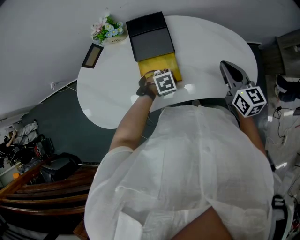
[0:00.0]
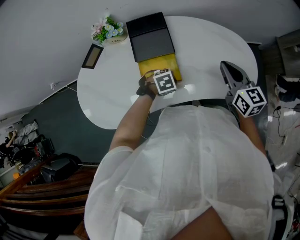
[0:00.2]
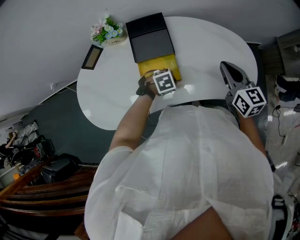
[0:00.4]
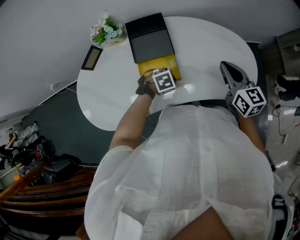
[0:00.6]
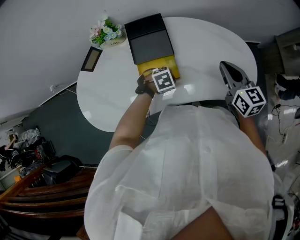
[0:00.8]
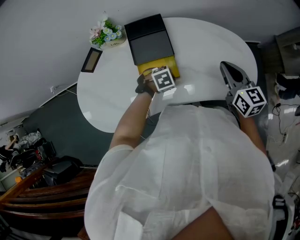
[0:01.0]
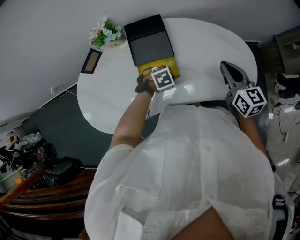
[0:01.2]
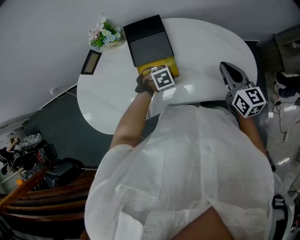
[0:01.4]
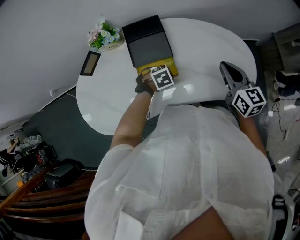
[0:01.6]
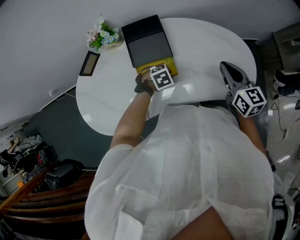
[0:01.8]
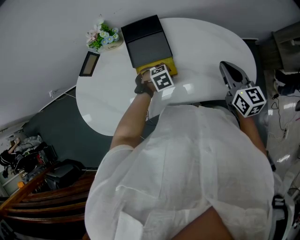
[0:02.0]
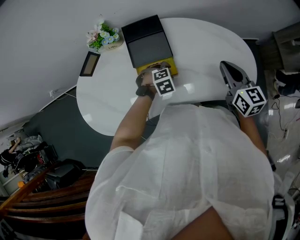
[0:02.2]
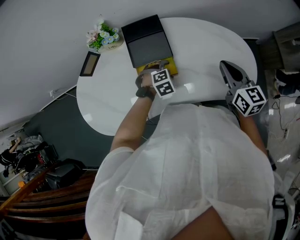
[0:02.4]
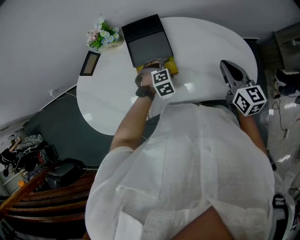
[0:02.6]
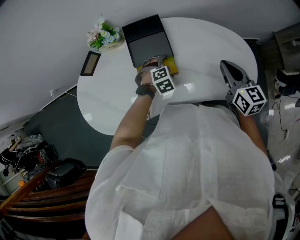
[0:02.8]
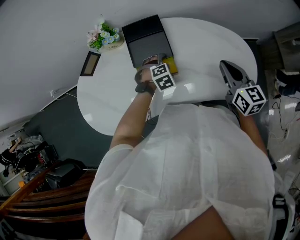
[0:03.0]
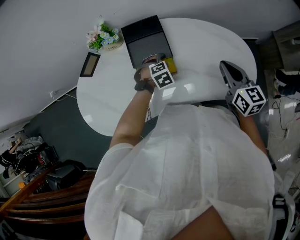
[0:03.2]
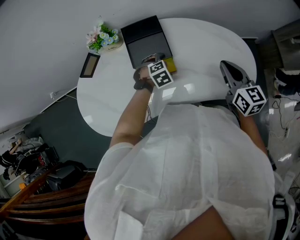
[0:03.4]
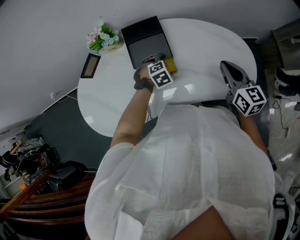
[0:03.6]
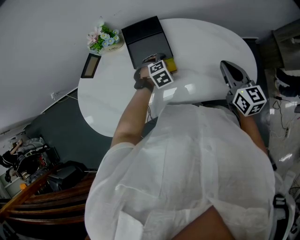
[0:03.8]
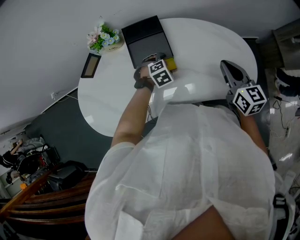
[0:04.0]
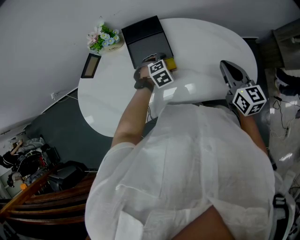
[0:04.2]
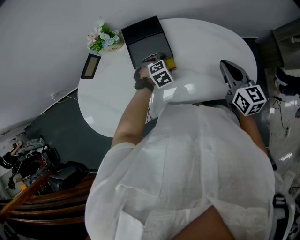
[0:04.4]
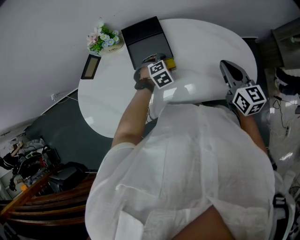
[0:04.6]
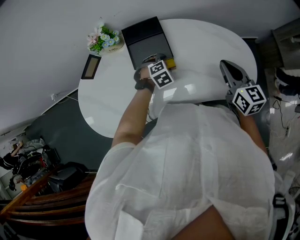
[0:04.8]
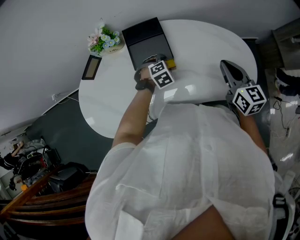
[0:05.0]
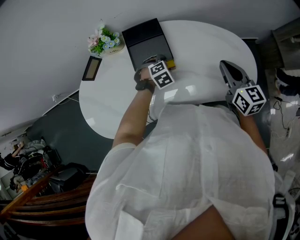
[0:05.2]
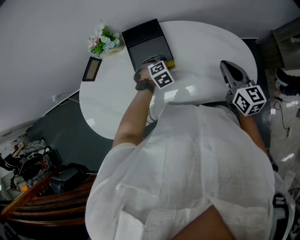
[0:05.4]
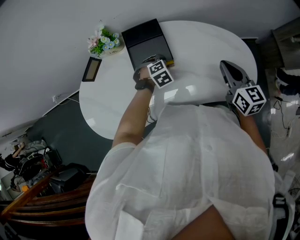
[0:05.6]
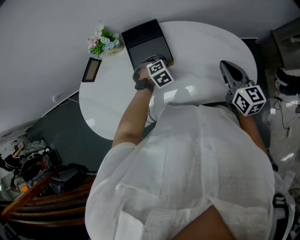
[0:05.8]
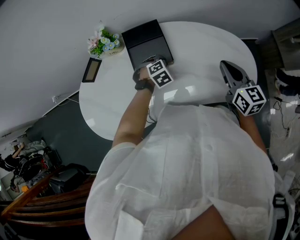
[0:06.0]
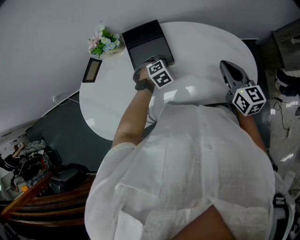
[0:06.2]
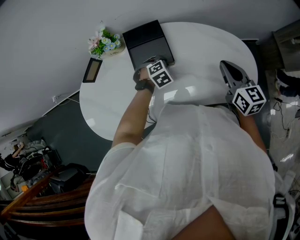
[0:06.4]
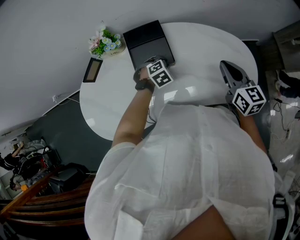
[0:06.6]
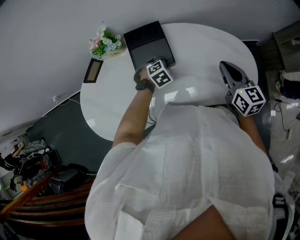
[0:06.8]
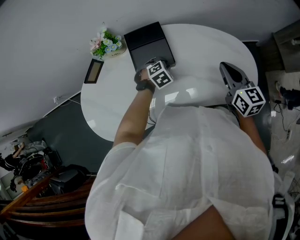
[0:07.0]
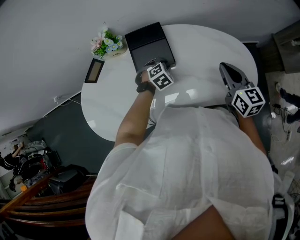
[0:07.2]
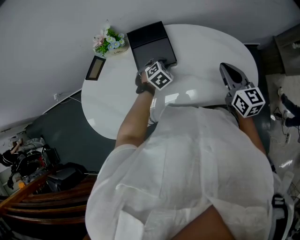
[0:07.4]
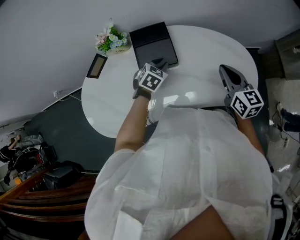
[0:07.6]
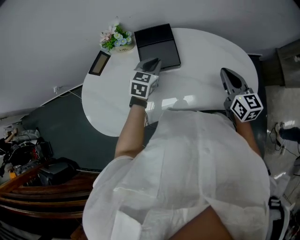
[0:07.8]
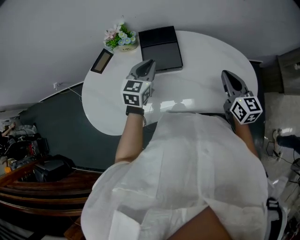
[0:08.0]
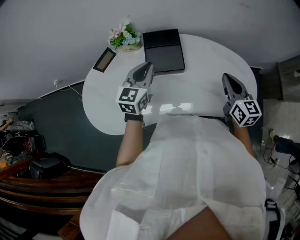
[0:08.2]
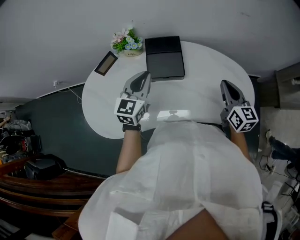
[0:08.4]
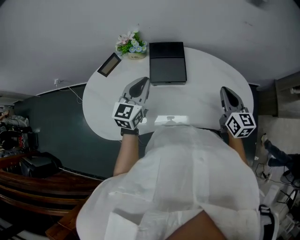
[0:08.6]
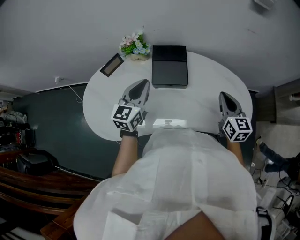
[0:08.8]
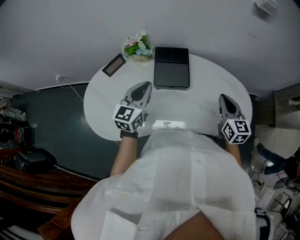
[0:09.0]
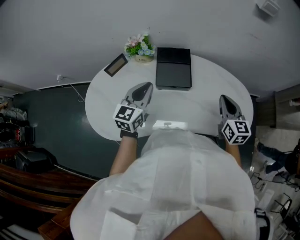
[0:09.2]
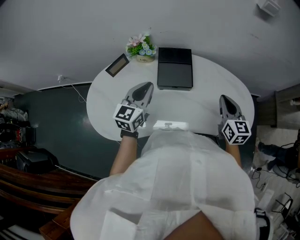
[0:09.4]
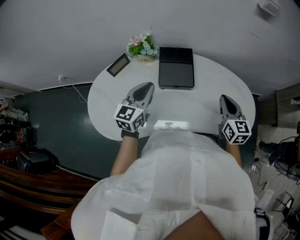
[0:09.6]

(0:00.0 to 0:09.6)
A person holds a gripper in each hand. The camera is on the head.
0:00.0 - 0:01.6: The left gripper ends up some 5 cm from where it was.
0:01.6 - 0:03.2: The left gripper moves approximately 5 cm, and opens.
0:03.2 - 0:04.8: The grippers make only small movements.
0:04.8 - 0:06.4: The left gripper closes.
0:06.4 - 0:08.0: The left gripper is displaced upward and to the left by approximately 20 cm, and tips its fingers upward by approximately 40 degrees.
0:08.0 - 0:09.6: The right gripper goes approximately 5 cm to the left. The left gripper travels to the left, backward and upward by approximately 10 cm.

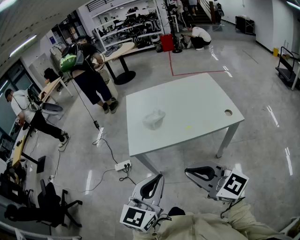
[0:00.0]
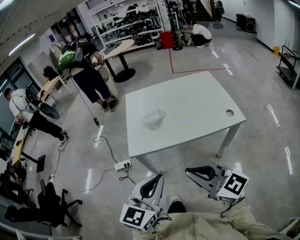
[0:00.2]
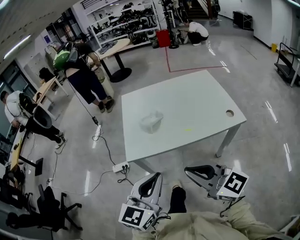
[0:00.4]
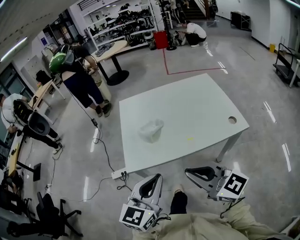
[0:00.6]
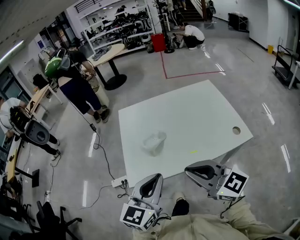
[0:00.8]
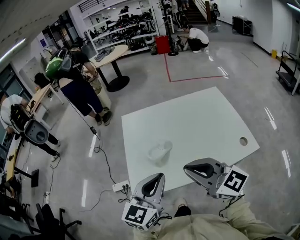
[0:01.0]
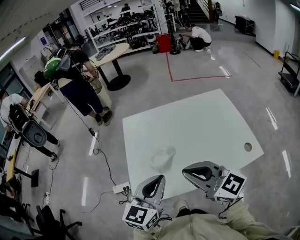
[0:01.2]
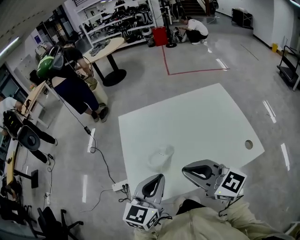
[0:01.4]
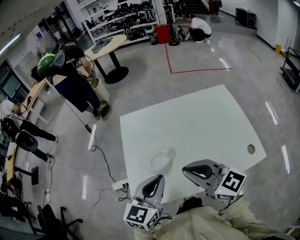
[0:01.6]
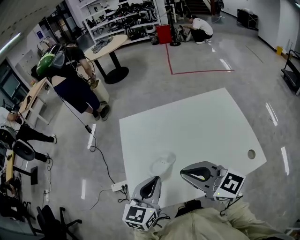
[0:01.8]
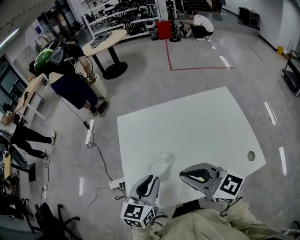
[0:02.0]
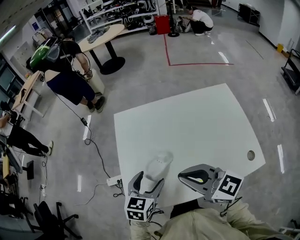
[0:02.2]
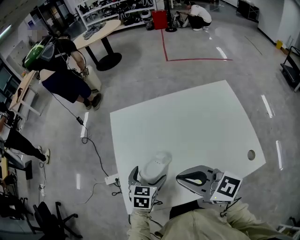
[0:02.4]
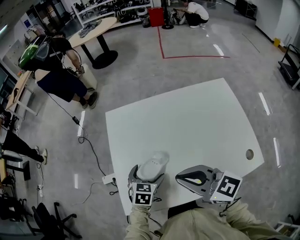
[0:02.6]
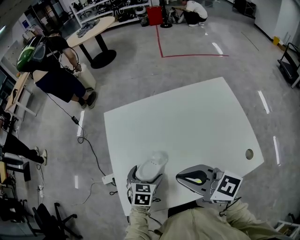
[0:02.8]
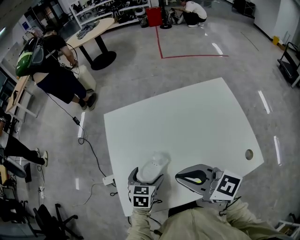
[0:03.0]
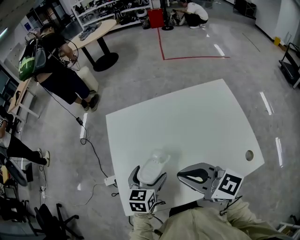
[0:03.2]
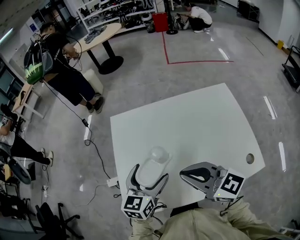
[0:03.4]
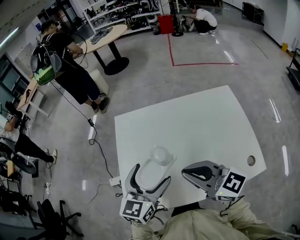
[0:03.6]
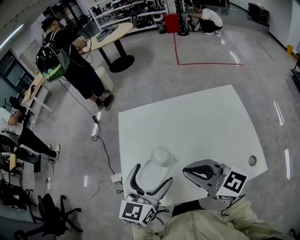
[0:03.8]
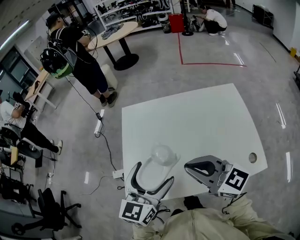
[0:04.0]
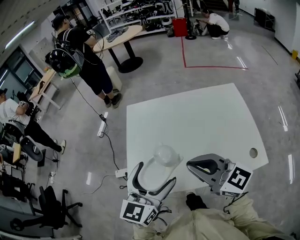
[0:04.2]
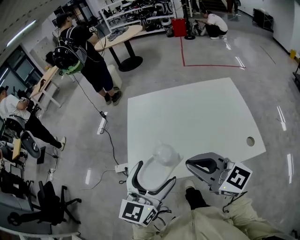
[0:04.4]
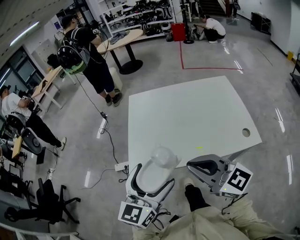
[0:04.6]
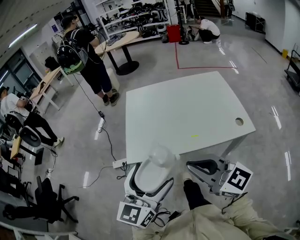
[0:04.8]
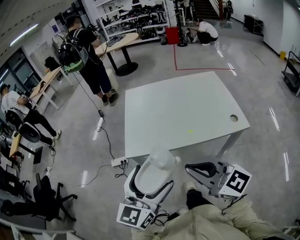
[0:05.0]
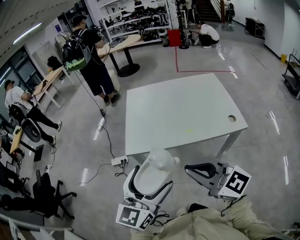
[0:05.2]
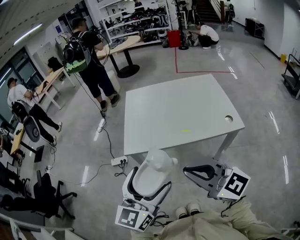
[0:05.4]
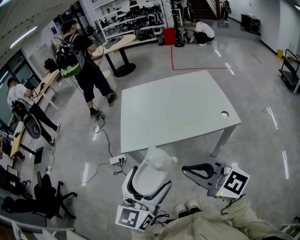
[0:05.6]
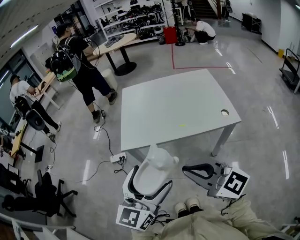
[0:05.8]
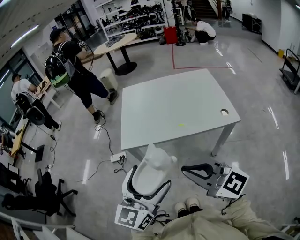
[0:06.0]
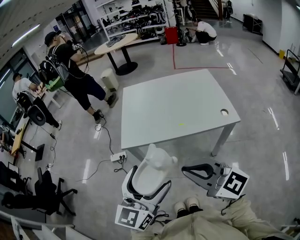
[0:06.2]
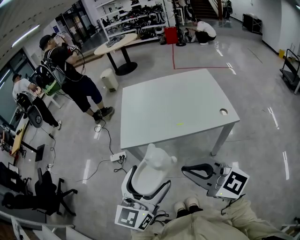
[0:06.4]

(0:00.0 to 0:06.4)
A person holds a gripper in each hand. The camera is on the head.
0:00.0 - 0:01.6: The grippers both shift forward by about 35 cm.
0:01.6 - 0:03.2: The left gripper shifts approximately 15 cm downward and forward, turns by about 20 degrees, and opens its fingers, while the right gripper shifts roughly 5 cm forward.
0:03.2 - 0:04.8: The right gripper shifts some 25 cm backward; the left gripper moves backward and upward, roughly 35 cm, and tilts its fingers about 30 degrees upward.
0:04.8 - 0:06.4: Both grippers move backward, approximately 15 cm.

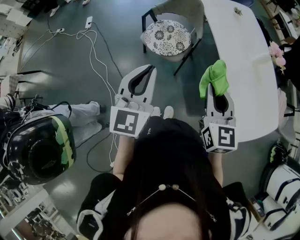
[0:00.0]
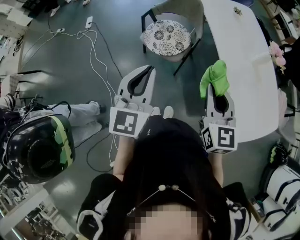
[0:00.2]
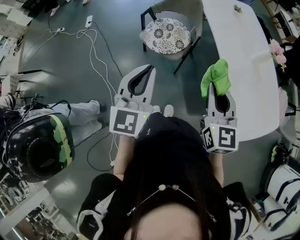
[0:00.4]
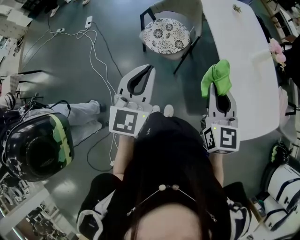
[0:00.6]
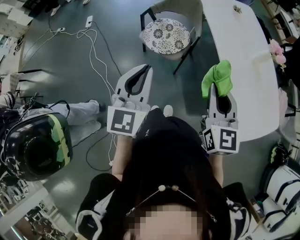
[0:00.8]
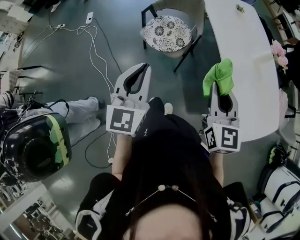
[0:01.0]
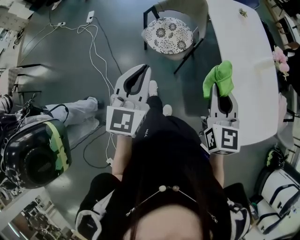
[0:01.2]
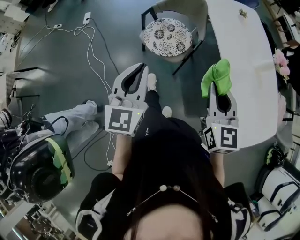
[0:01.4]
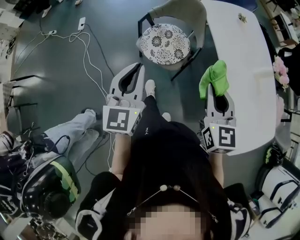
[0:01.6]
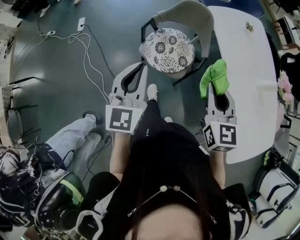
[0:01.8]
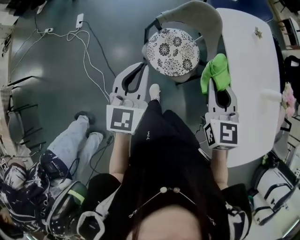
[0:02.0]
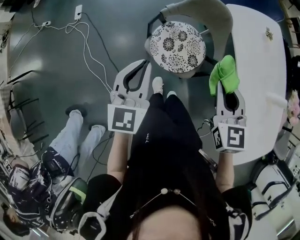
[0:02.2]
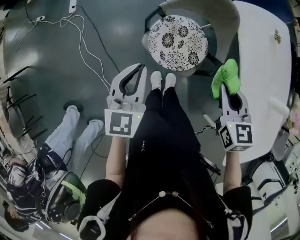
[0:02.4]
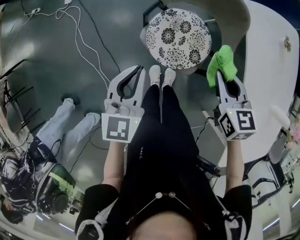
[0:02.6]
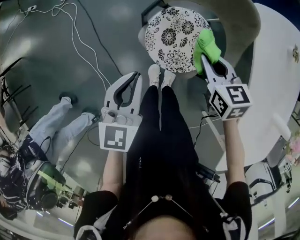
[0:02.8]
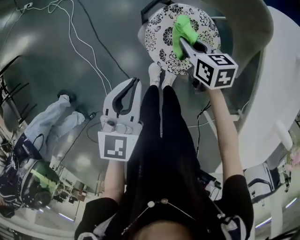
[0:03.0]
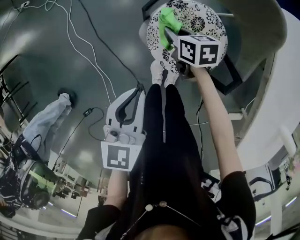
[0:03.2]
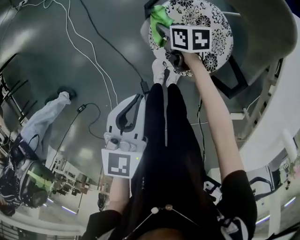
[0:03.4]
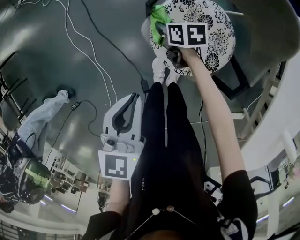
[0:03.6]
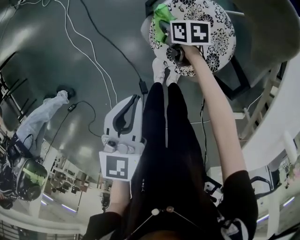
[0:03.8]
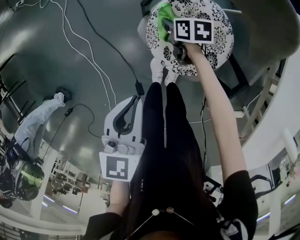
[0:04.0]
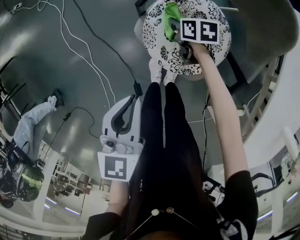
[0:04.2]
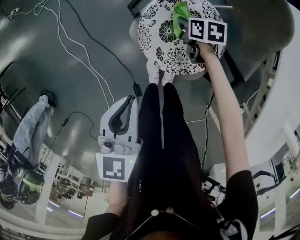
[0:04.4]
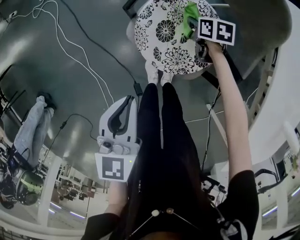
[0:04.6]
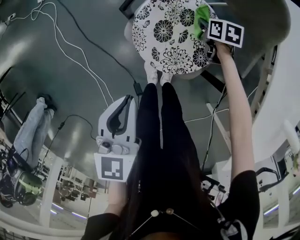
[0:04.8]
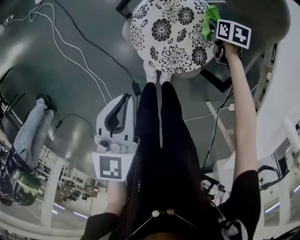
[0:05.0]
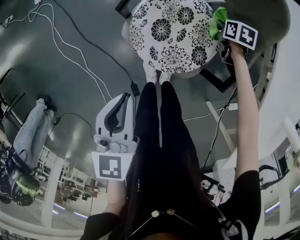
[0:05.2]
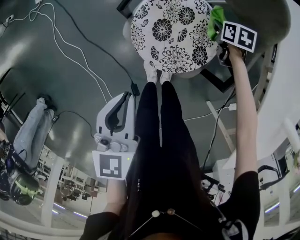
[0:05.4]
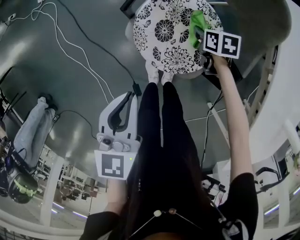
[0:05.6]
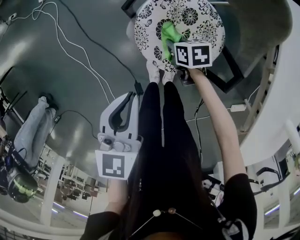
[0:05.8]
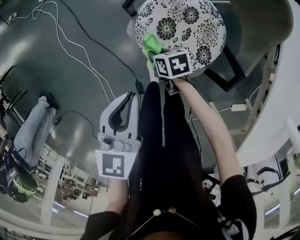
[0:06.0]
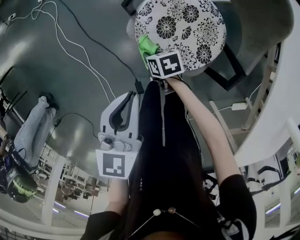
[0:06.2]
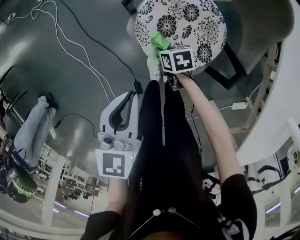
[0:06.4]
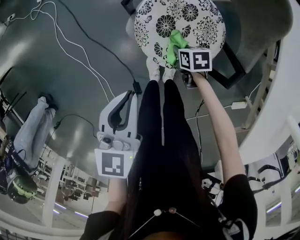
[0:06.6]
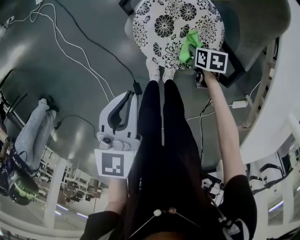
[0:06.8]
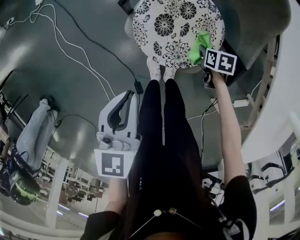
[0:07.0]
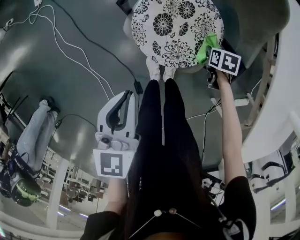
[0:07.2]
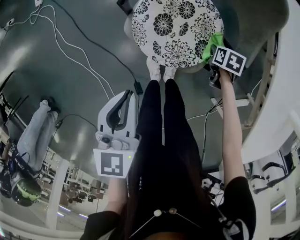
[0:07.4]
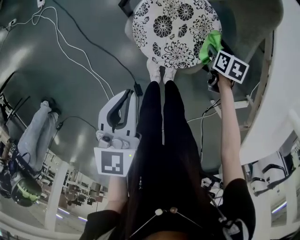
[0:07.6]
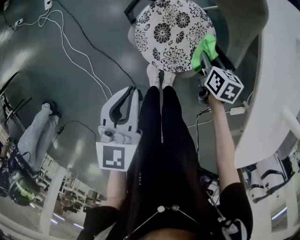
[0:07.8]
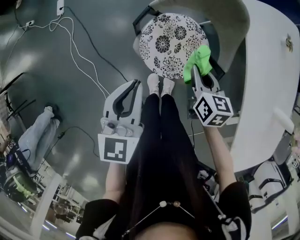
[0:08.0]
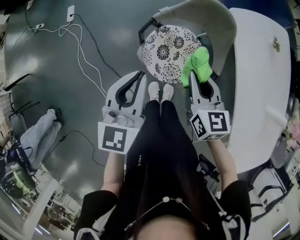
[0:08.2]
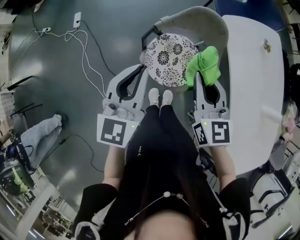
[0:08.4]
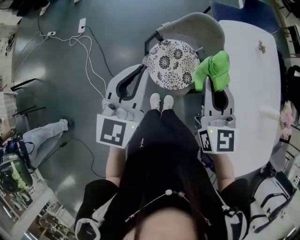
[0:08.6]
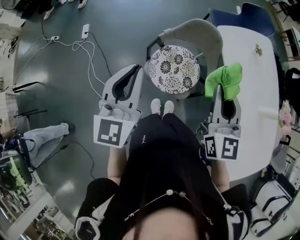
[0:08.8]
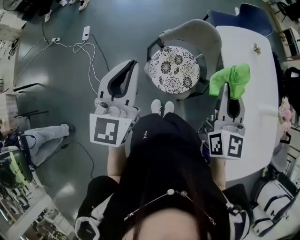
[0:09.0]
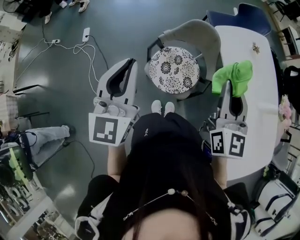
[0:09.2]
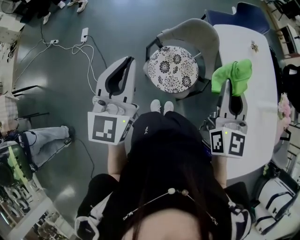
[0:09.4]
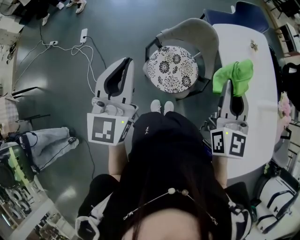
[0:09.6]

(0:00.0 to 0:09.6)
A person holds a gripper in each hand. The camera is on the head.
0:00.0 - 0:01.6: The two grippers go approximately 10 cm forward.
0:01.6 - 0:03.2: The left gripper is displaced downward by approximately 30 cm, and turns by roughly 30 degrees, while the right gripper shifts by roughly 70 cm, and changes its angle by approximately 60 degrees.
0:03.2 - 0:04.8: The right gripper travels to the right and downward by some 20 cm, and rotates some 20 degrees.
0:04.8 - 0:06.4: The right gripper shifts by about 25 cm.
0:06.4 - 0:08.0: The left gripper shifts some 15 cm upward; the right gripper is displaced upward by about 30 cm, and turns by some 40 degrees.
0:08.0 - 0:09.6: The two grippers go about 30 cm upward. The left gripper rotates approximately 30 degrees. Meanwhile the right gripper tilts its fingers approximately 40 degrees upward.
